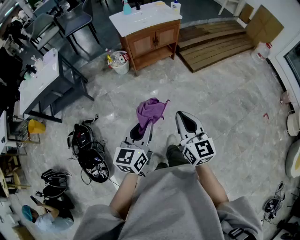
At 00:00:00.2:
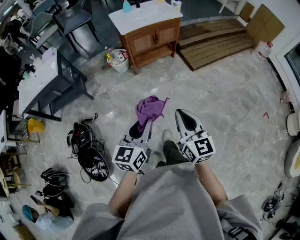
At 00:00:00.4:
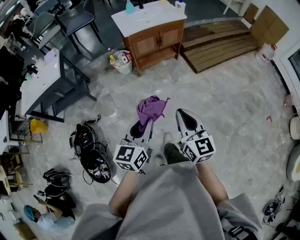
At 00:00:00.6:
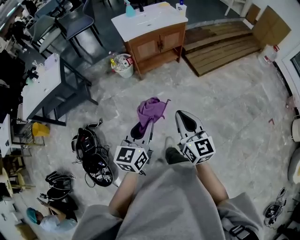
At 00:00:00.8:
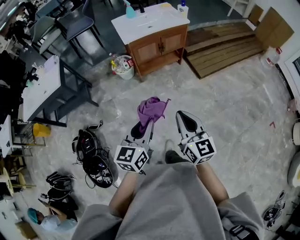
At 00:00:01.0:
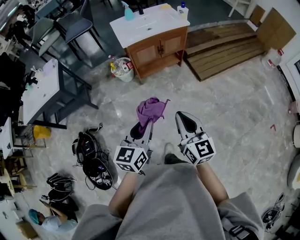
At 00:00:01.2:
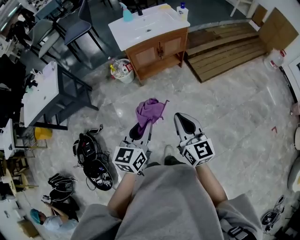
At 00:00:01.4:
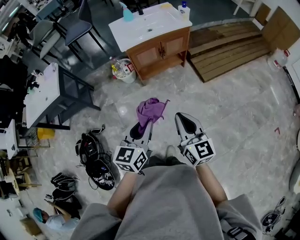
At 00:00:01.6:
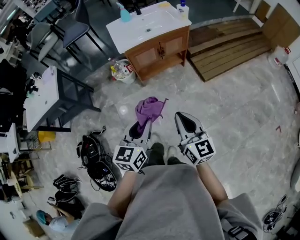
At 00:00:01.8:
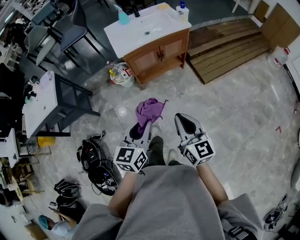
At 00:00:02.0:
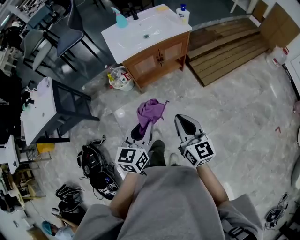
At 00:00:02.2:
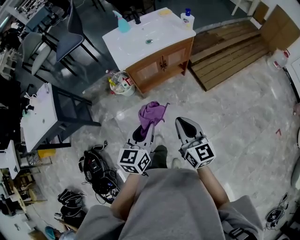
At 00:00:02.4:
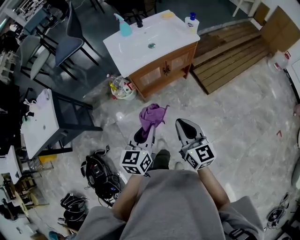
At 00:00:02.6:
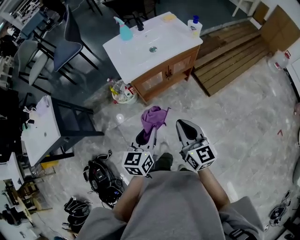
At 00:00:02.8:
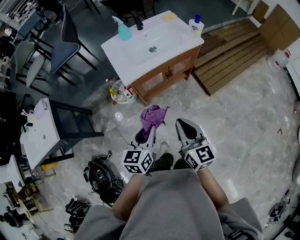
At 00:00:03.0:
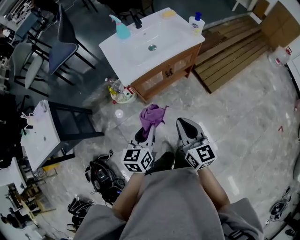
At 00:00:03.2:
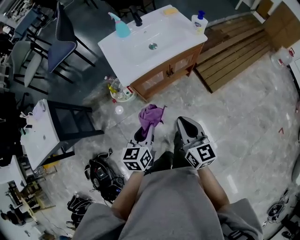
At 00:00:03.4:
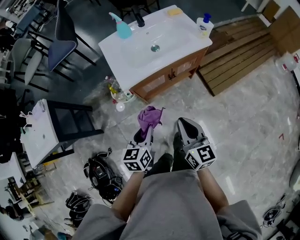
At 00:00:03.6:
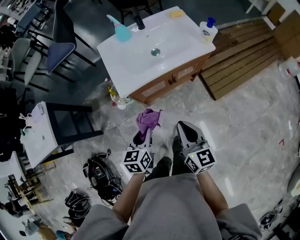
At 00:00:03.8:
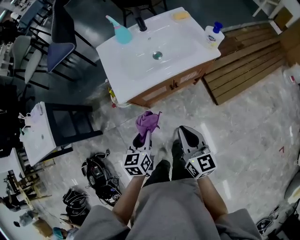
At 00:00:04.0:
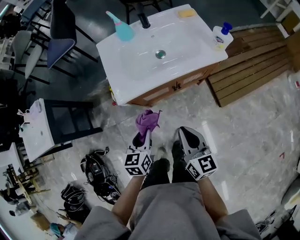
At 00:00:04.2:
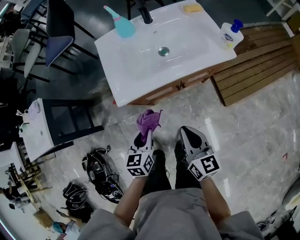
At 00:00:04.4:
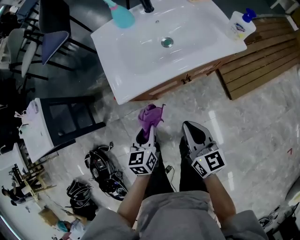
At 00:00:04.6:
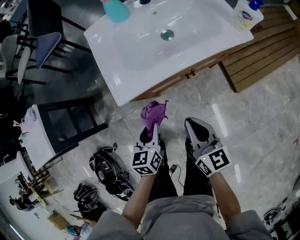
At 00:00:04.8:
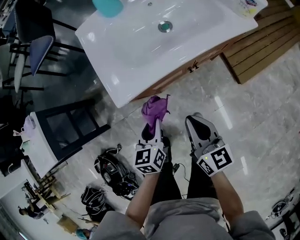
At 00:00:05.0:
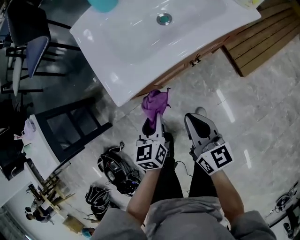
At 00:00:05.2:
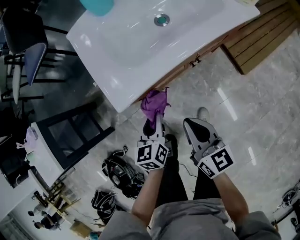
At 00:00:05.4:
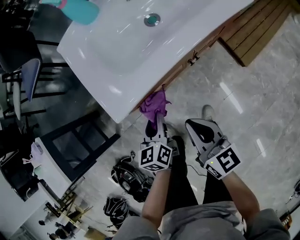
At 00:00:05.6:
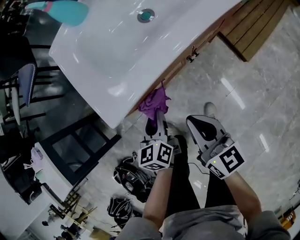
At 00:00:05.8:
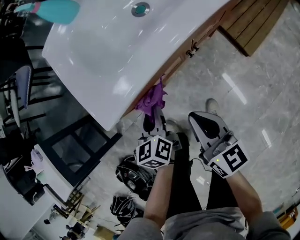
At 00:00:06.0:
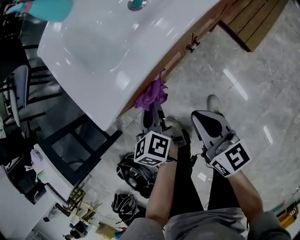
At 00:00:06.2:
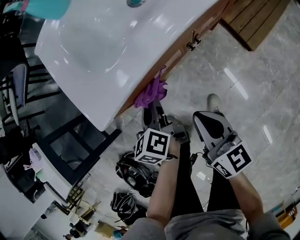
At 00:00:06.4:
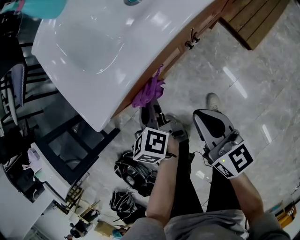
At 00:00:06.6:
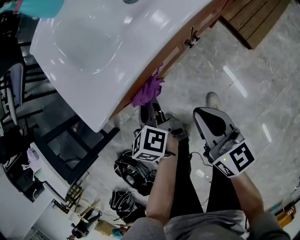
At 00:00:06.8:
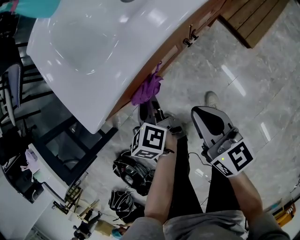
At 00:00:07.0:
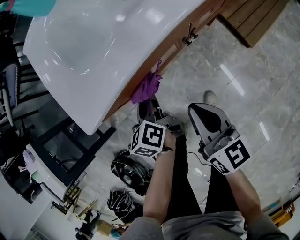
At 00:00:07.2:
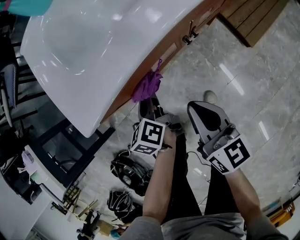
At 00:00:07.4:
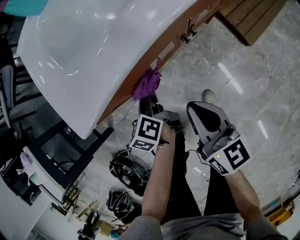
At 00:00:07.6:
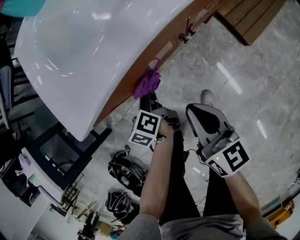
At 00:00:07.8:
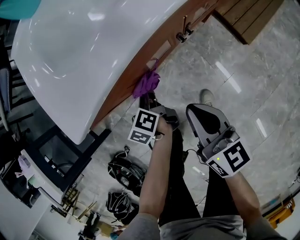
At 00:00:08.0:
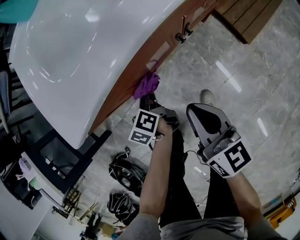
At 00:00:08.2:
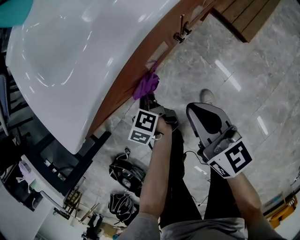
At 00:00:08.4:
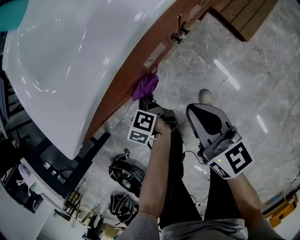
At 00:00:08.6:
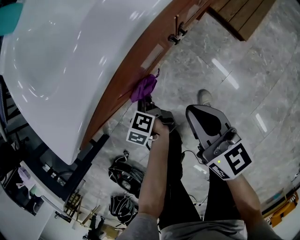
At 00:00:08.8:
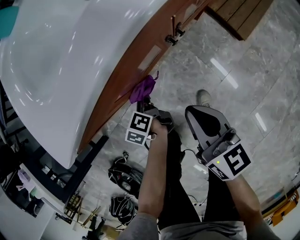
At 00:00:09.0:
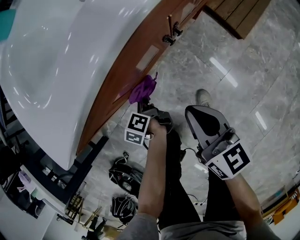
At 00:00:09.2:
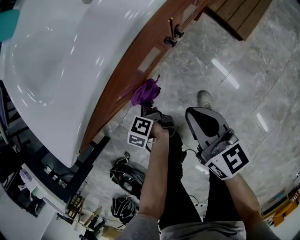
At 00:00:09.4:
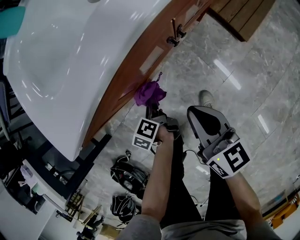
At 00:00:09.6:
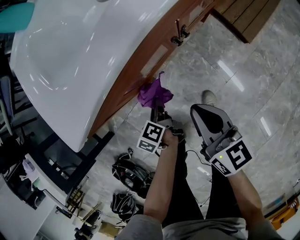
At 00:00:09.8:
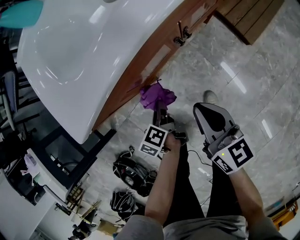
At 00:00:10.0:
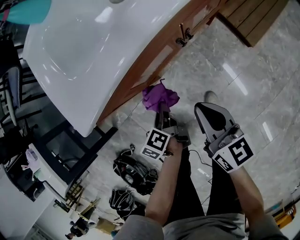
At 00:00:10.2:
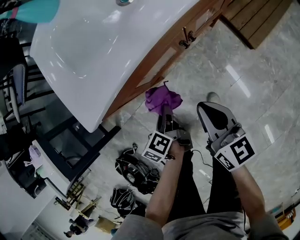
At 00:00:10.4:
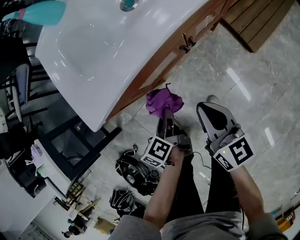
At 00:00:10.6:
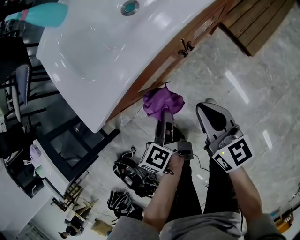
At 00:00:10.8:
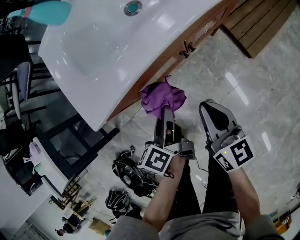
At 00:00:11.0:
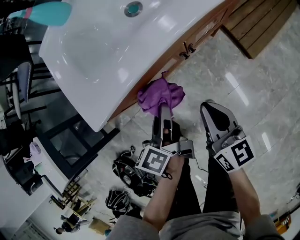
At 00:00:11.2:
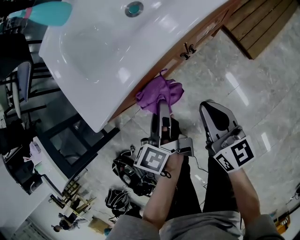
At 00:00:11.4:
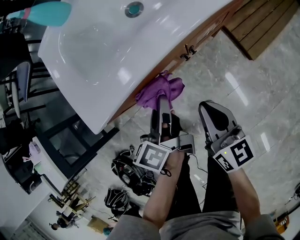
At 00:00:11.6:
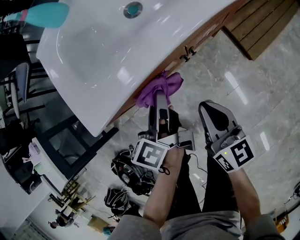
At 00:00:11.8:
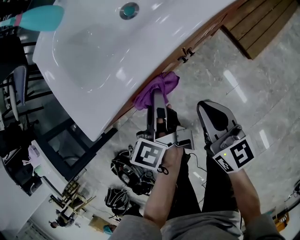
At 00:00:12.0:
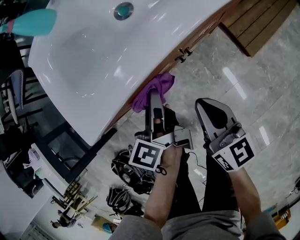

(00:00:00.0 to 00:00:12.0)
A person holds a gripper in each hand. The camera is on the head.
00:00:00.0 - 00:00:01.6: The two grippers go some 25 cm forward.
00:00:01.6 - 00:00:03.0: Both grippers move forward, roughly 25 cm.
00:00:03.0 - 00:00:04.4: The right gripper moves forward and downward, some 25 cm, while the left gripper travels downward and forward by about 25 cm.
00:00:04.4 - 00:00:06.0: The left gripper shifts roughly 15 cm downward and forward; the right gripper heads downward, covering approximately 15 cm.
00:00:06.0 - 00:00:07.6: The left gripper moves downward, roughly 10 cm.
00:00:07.6 - 00:00:09.0: The left gripper goes some 10 cm downward.
00:00:09.0 - 00:00:10.4: The left gripper moves upward and backward, roughly 15 cm. Meanwhile the right gripper heads upward, covering about 5 cm.
00:00:10.4 - 00:00:12.0: The right gripper shifts by some 5 cm; the left gripper shifts roughly 15 cm forward, upward and to the right, and turns by some 20 degrees.

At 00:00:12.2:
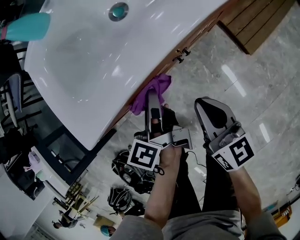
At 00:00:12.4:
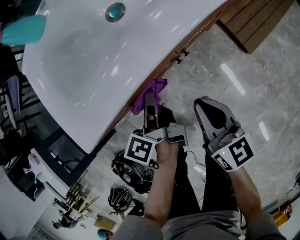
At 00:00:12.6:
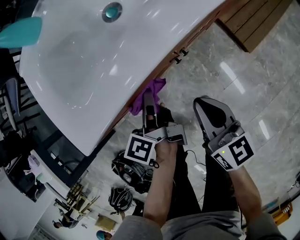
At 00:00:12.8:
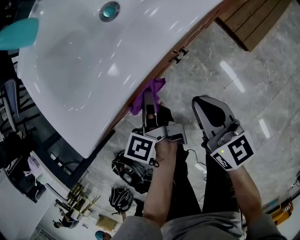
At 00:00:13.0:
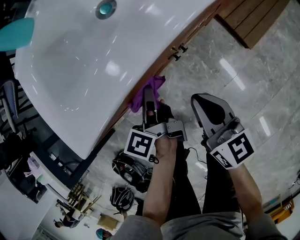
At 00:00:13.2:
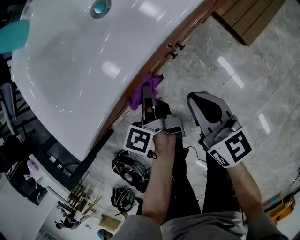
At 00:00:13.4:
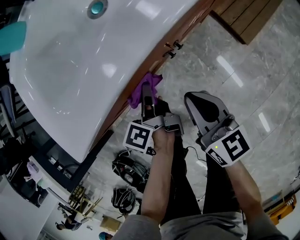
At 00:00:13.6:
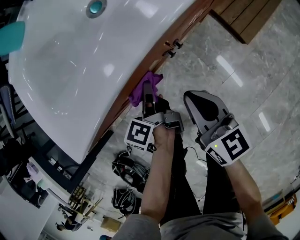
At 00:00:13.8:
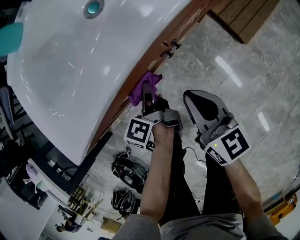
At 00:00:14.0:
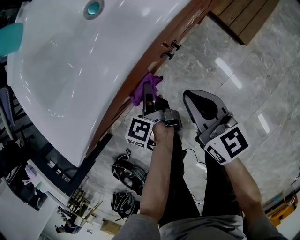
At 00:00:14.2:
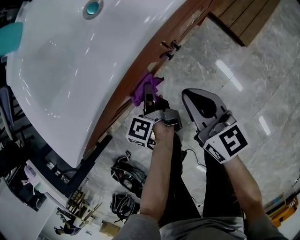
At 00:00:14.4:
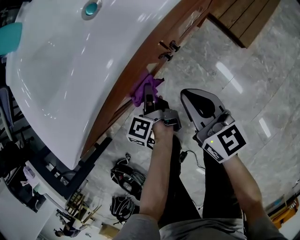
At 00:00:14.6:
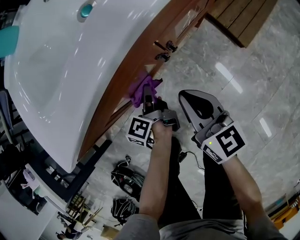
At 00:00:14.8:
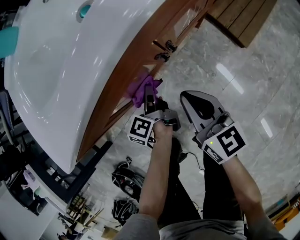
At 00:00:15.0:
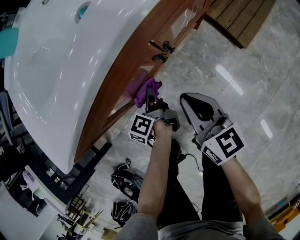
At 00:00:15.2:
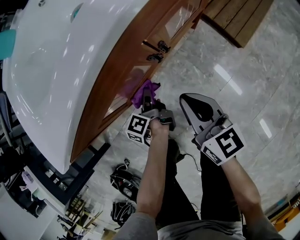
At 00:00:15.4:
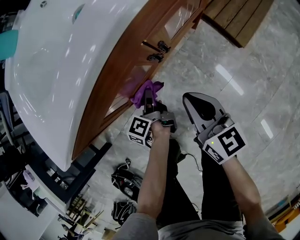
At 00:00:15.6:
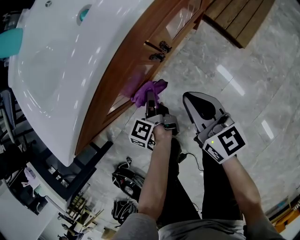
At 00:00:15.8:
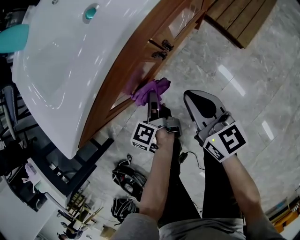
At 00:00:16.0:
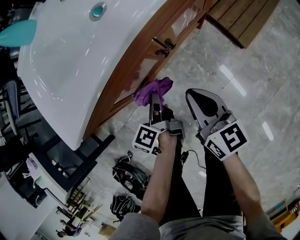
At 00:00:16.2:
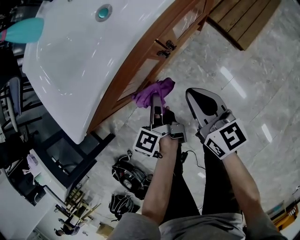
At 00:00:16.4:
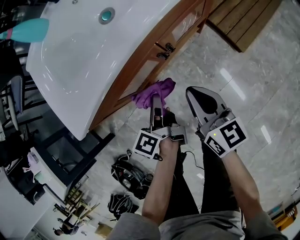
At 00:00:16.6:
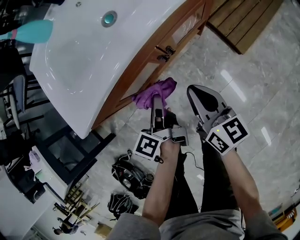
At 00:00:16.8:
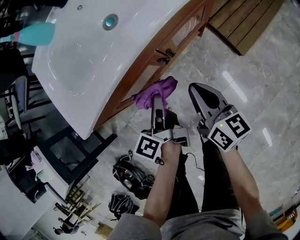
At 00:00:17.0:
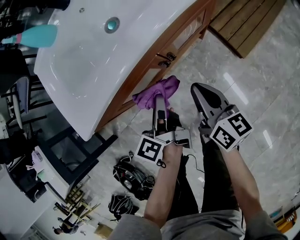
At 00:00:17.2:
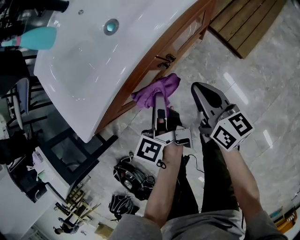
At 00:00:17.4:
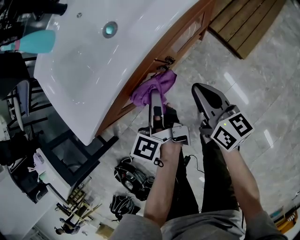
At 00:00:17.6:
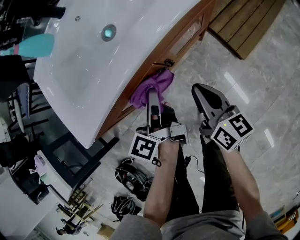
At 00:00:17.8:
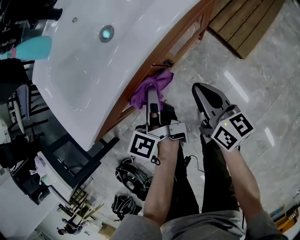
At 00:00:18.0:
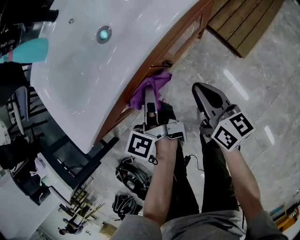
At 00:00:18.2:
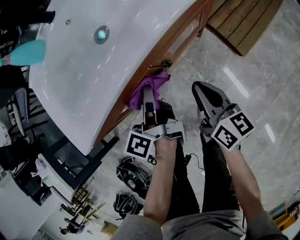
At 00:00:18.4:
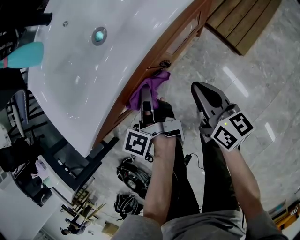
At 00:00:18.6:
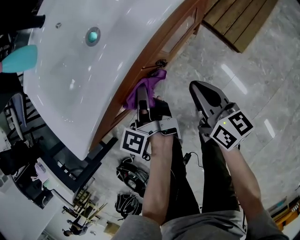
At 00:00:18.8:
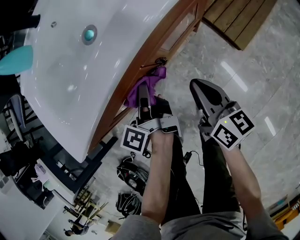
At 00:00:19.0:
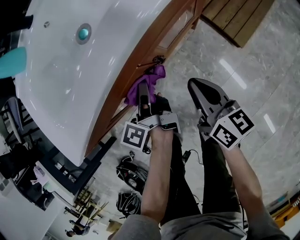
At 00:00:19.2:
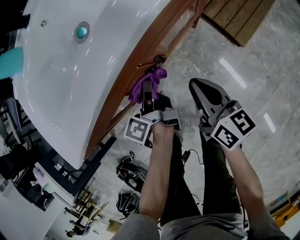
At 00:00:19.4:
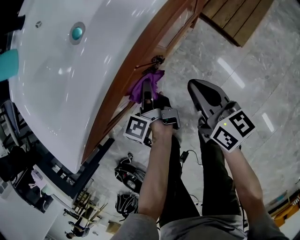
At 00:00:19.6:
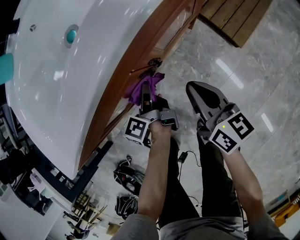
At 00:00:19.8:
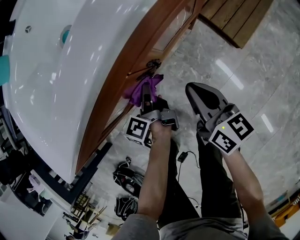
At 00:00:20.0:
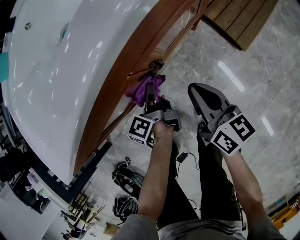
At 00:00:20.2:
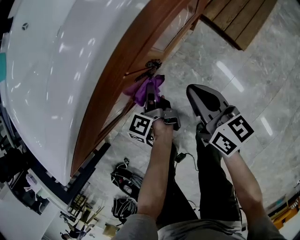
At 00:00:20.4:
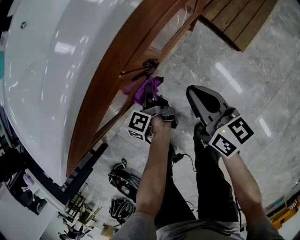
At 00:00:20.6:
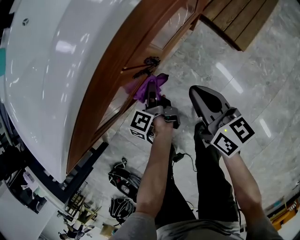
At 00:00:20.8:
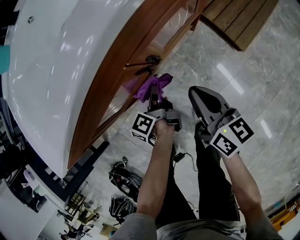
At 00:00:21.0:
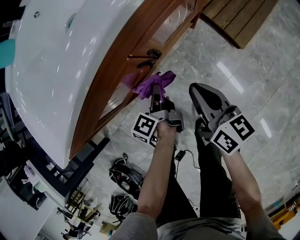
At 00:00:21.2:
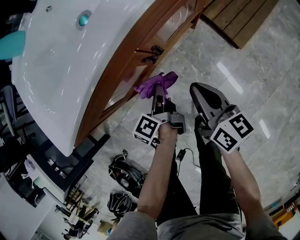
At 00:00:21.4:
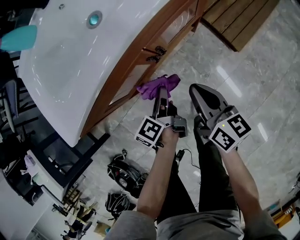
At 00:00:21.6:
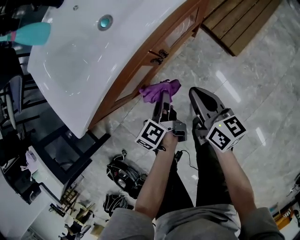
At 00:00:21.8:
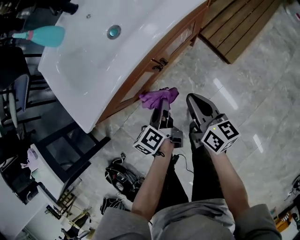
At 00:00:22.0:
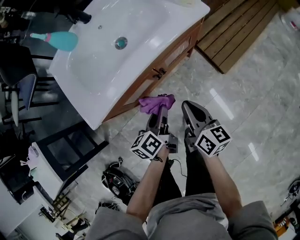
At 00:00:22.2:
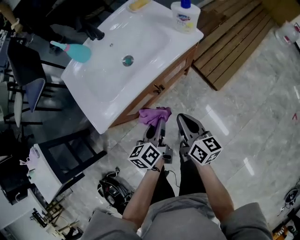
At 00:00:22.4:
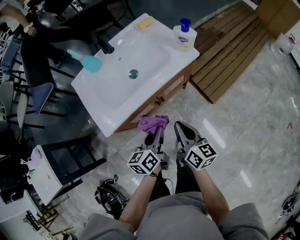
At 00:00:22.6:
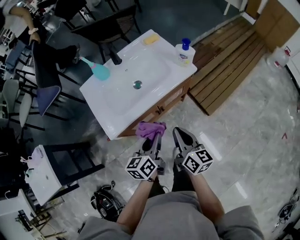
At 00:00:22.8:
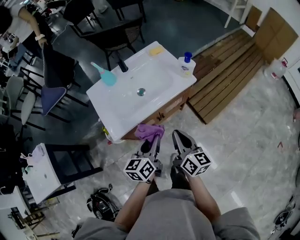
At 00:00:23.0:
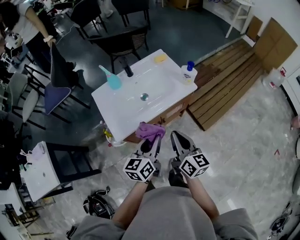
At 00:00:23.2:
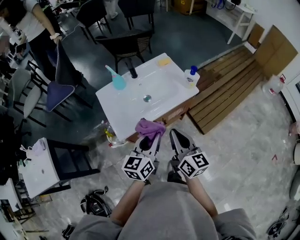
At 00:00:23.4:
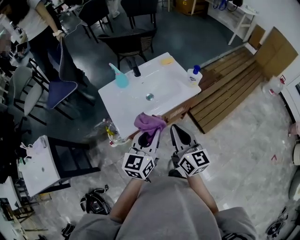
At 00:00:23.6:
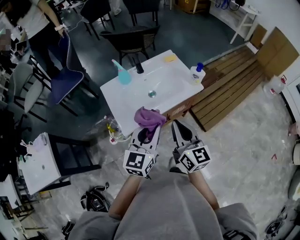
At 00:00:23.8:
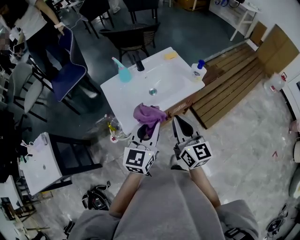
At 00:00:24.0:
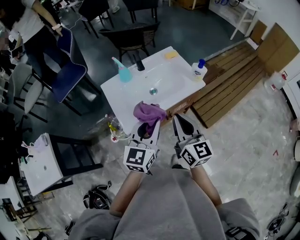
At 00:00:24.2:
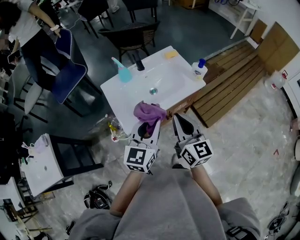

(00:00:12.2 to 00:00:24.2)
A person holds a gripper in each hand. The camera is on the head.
00:00:12.2 - 00:00:13.8: The left gripper goes approximately 15 cm downward.
00:00:13.8 - 00:00:15.2: The left gripper heads downward, covering roughly 10 cm.
00:00:15.2 - 00:00:16.6: The right gripper moves upward, some 10 cm, while the left gripper is displaced upward by approximately 20 cm.
00:00:16.6 - 00:00:18.2: The left gripper goes about 10 cm forward. Meanwhile the right gripper travels to the right by roughly 5 cm.
00:00:18.2 - 00:00:19.8: The right gripper moves downward, about 5 cm; the left gripper travels downward by some 20 cm.
00:00:19.8 - 00:00:21.2: The left gripper heads backward, covering some 5 cm, and travels downward and back again, about 5 cm each way. Meanwhile the right gripper changes place by about 5 cm.
00:00:21.2 - 00:00:22.6: Both grippers move upward, roughly 35 cm. The left gripper turns by approximately 40 degrees.
00:00:22.6 - 00:00:24.2: The right gripper travels upward and to the left by some 20 cm, and turns by about 20 degrees. Meanwhile the left gripper travels upward by approximately 20 cm, and swivels approximately 40 degrees.
